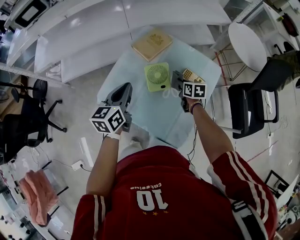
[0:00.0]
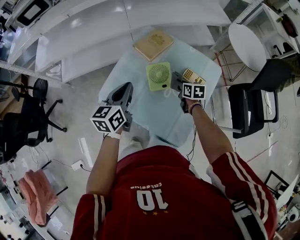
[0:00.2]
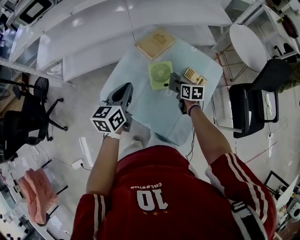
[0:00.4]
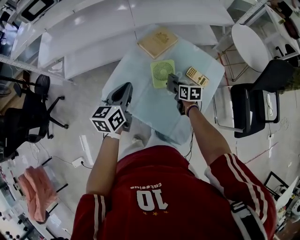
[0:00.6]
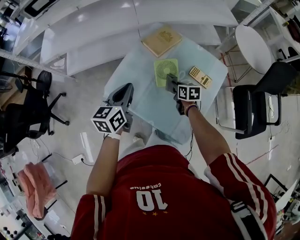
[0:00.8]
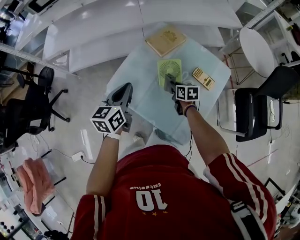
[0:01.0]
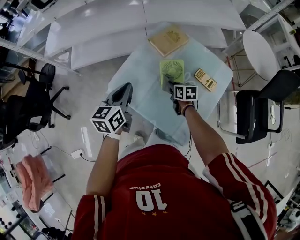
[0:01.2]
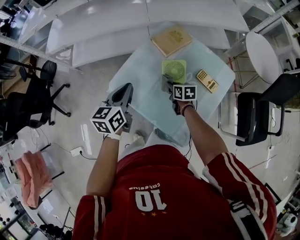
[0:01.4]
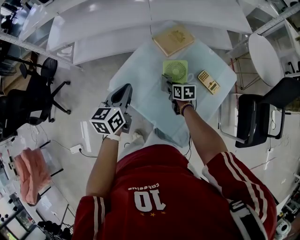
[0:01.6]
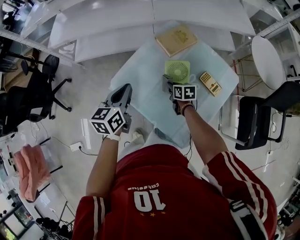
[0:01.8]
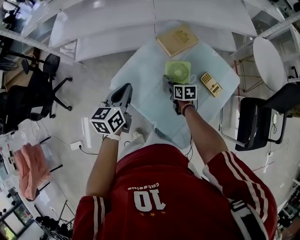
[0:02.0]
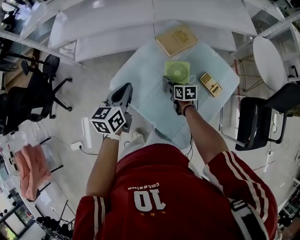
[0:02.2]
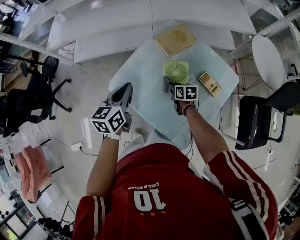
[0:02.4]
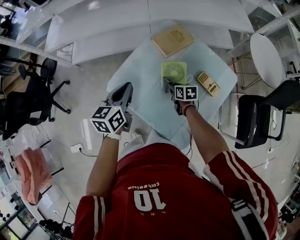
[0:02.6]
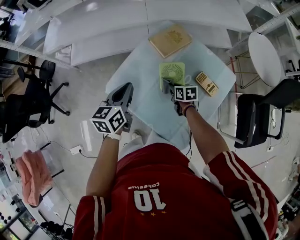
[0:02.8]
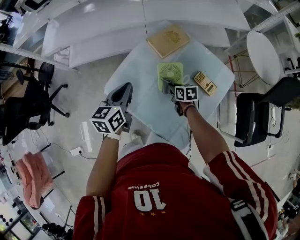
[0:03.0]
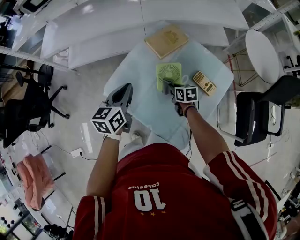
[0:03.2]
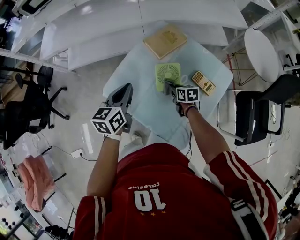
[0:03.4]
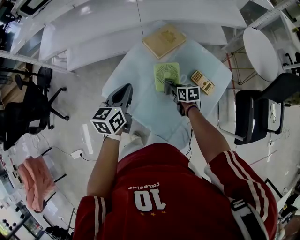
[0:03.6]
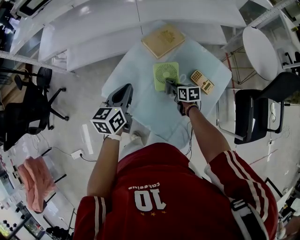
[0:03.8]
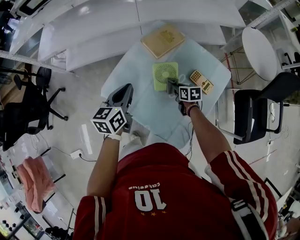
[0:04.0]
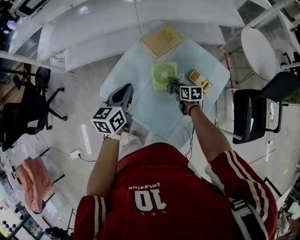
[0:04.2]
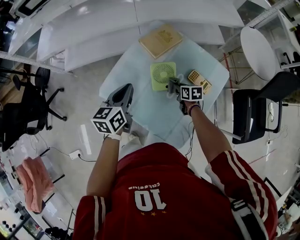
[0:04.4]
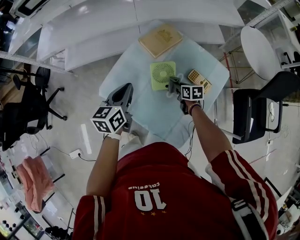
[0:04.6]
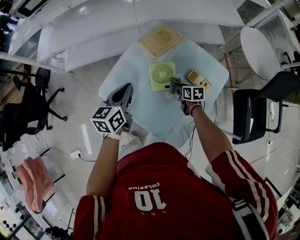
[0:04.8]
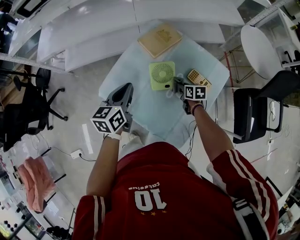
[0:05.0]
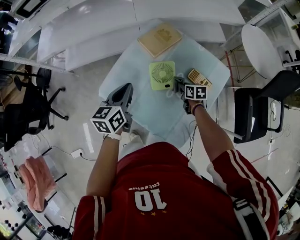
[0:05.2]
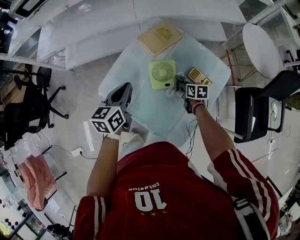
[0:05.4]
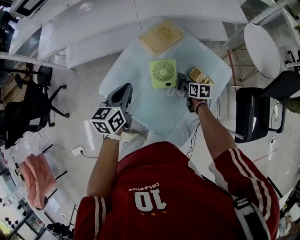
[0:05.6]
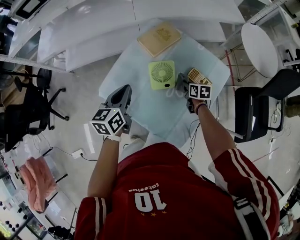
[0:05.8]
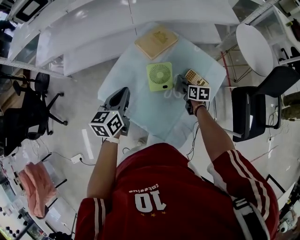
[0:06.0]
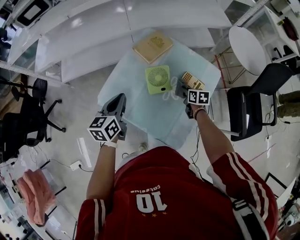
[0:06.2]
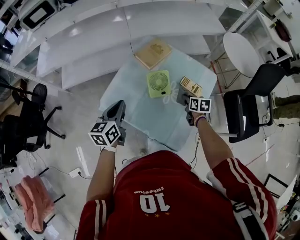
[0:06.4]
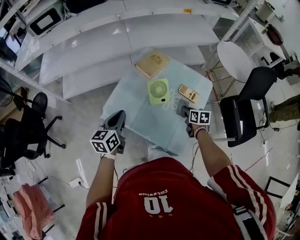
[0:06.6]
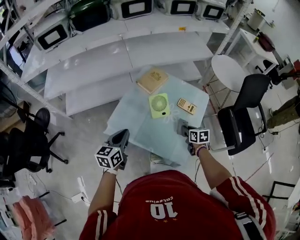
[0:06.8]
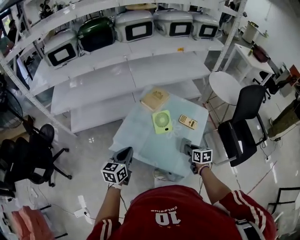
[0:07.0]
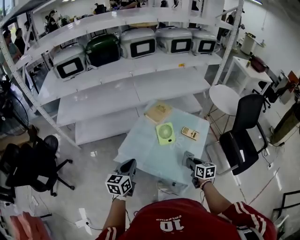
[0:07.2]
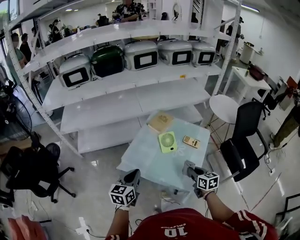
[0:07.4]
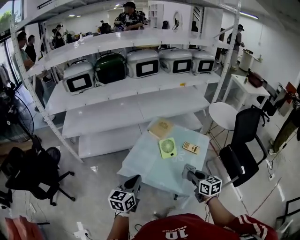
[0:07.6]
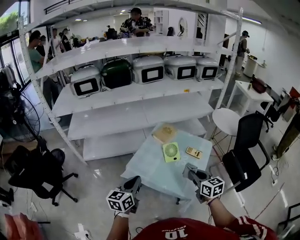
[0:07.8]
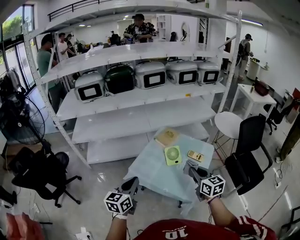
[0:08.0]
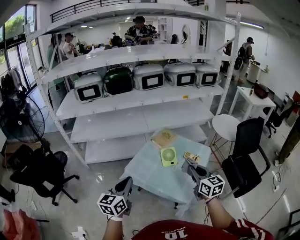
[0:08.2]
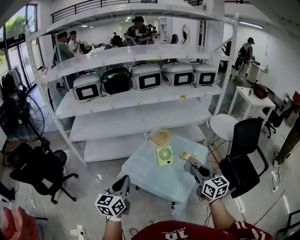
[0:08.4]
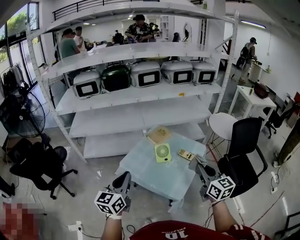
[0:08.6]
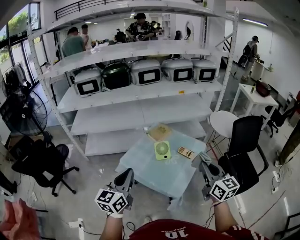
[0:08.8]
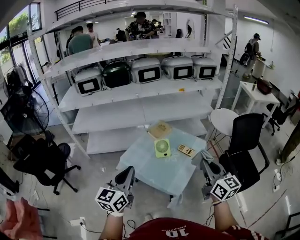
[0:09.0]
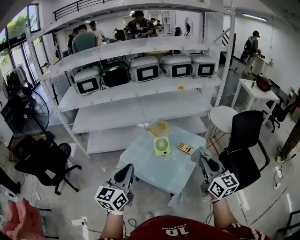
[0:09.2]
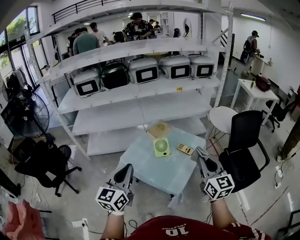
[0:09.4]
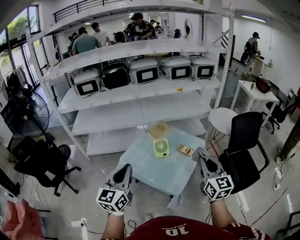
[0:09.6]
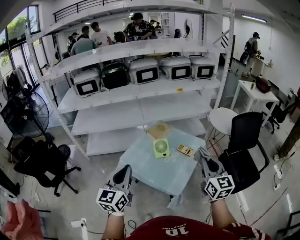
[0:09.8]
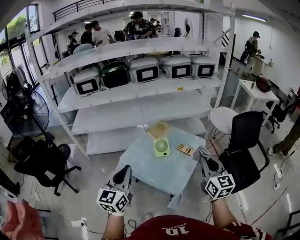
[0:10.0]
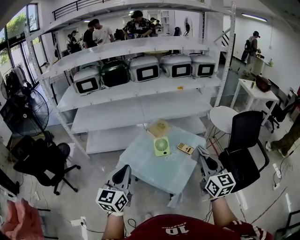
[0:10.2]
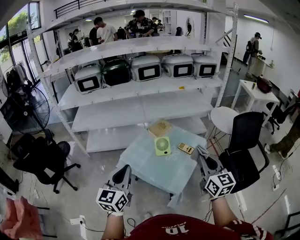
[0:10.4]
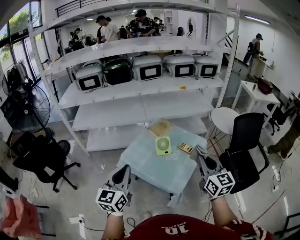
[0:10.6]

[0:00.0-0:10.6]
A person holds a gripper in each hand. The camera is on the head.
0:00.0 to 0:01.6: The right gripper heads to the left, covering some 15 cm, while the left gripper moves to the left, approximately 10 cm.
0:01.6 to 0:03.0: The grippers make only small movements.
0:03.0 to 0:04.6: The right gripper moves to the right, about 5 cm.
0:04.6 to 0:06.0: The right gripper is displaced to the right by some 5 cm.
0:06.0 to 0:07.6: The right gripper shifts about 40 cm upward and backward, and turns by about 30 degrees; the left gripper moves backward and upward, approximately 30 cm.
0:07.6 to 0:09.0: The left gripper goes some 20 cm upward, to the right and backward. Meanwhile the right gripper goes roughly 25 cm upward and to the right, and turns by about 30 degrees.
0:09.0 to 0:10.6: The grippers make only small movements.

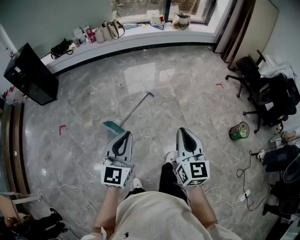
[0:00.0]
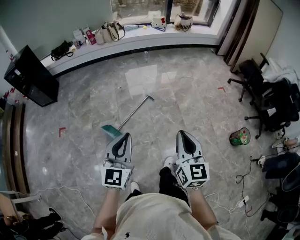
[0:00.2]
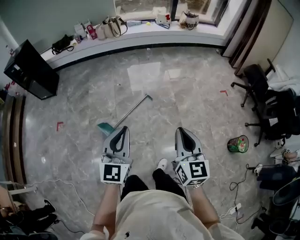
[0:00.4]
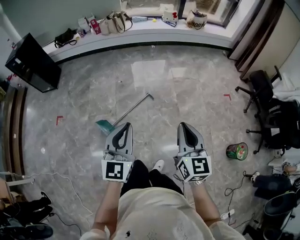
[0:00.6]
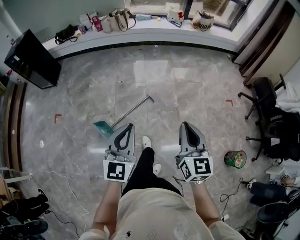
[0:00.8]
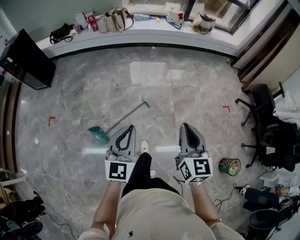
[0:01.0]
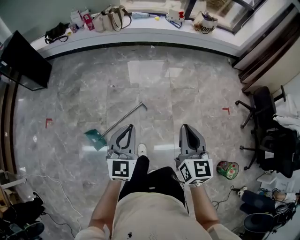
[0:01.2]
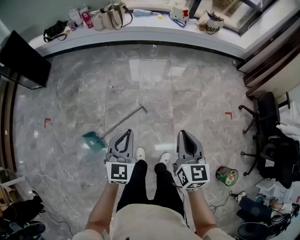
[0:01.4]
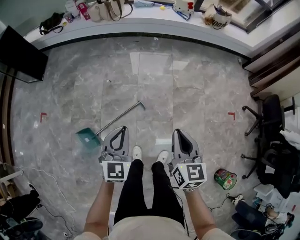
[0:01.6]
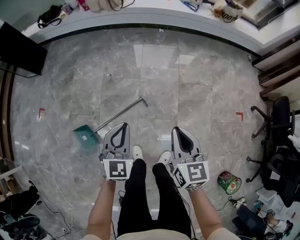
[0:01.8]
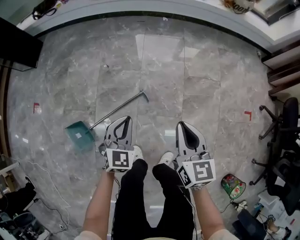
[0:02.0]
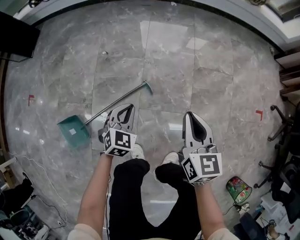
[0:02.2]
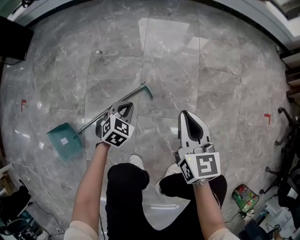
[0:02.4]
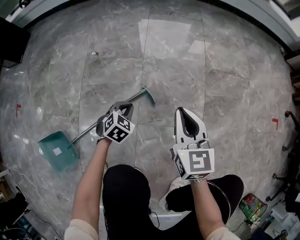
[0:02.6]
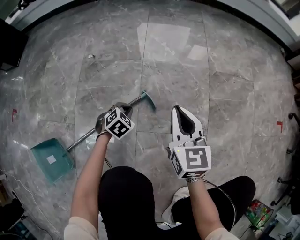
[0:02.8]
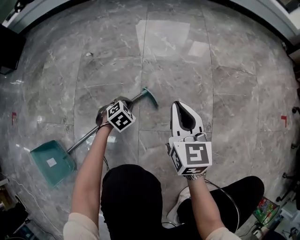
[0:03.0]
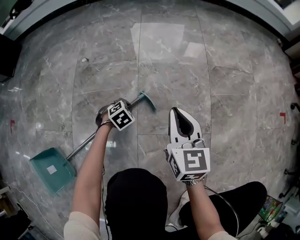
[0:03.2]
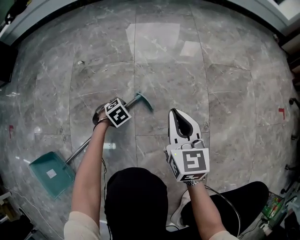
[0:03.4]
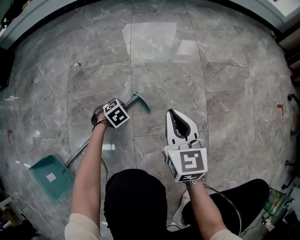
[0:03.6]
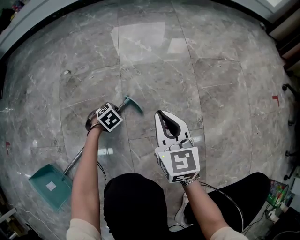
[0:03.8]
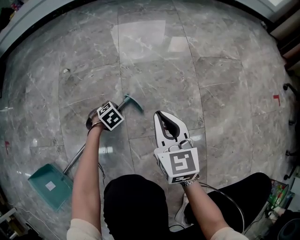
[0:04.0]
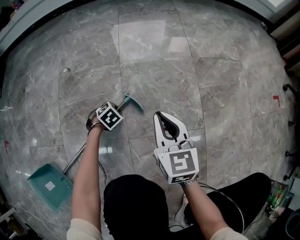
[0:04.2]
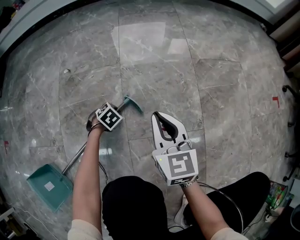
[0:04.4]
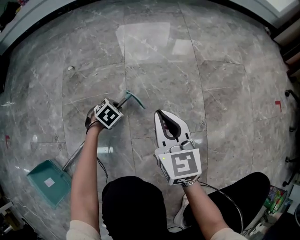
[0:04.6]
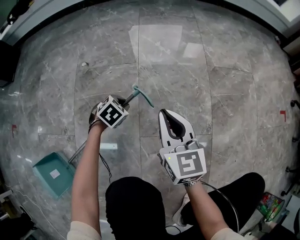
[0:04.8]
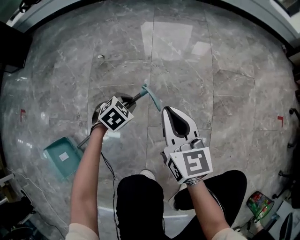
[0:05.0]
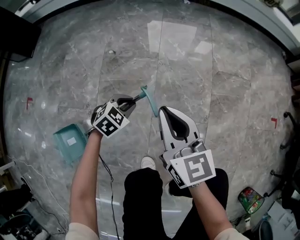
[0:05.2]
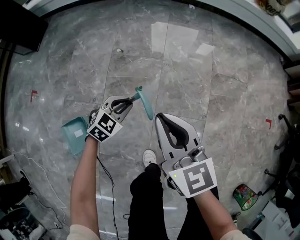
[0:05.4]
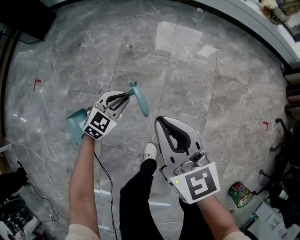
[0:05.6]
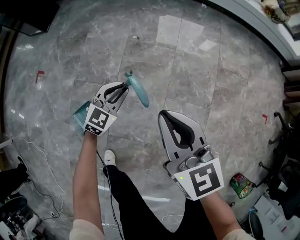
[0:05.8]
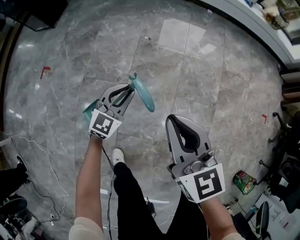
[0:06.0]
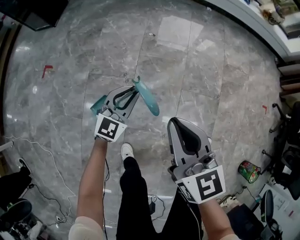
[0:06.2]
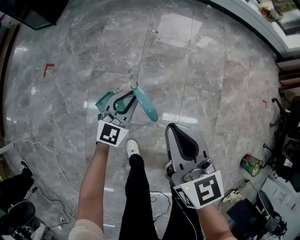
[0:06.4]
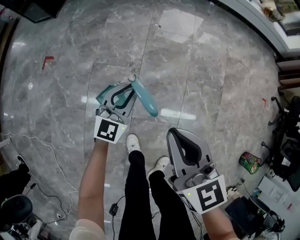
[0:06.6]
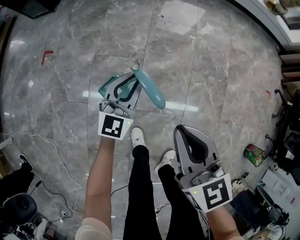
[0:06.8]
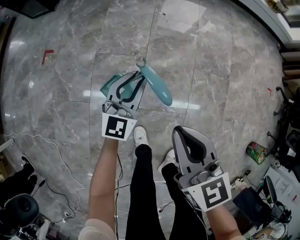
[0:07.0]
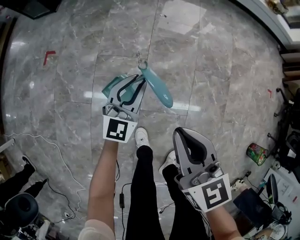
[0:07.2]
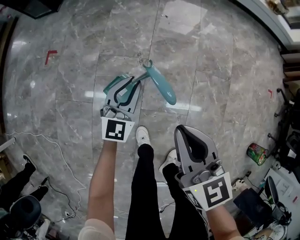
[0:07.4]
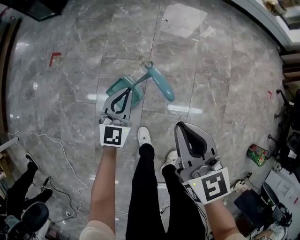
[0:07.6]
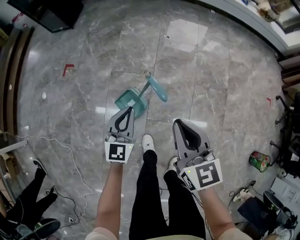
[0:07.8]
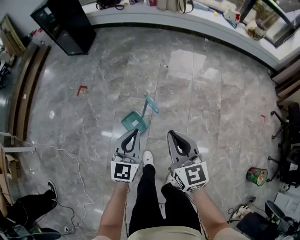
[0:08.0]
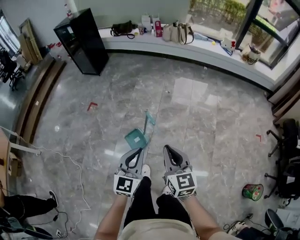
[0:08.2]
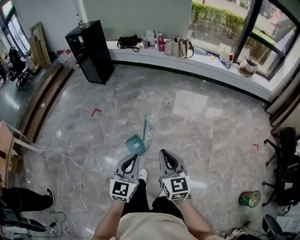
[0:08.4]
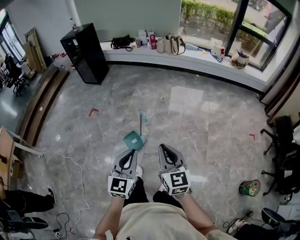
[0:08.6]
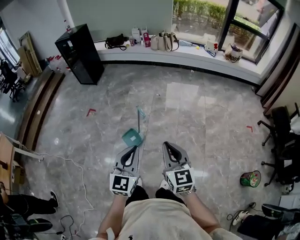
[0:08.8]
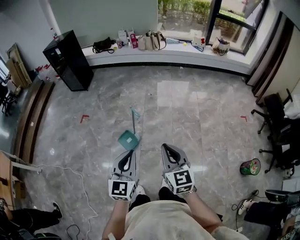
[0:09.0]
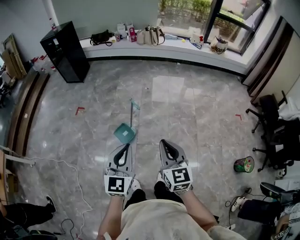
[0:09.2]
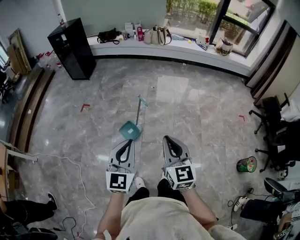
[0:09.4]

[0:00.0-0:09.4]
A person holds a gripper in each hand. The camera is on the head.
0:00.0 to 0:01.6: The pair of grippers is taken forward, roughly 60 cm. The left gripper swivels some 20 degrees, while the right gripper turns by about 20 degrees.
0:01.6 to 0:03.2: The two grippers go about 80 cm downward. The left gripper tilts its fingers approximately 50 degrees downward.
0:03.2 to 0:04.8: The left gripper travels upward by approximately 5 cm.
0:04.8 to 0:06.2: The pair of grippers is taken to the left and backward, roughly 40 cm. The grippers both shift upward by about 50 cm. The left gripper angles its fingers upward, by about 50 degrees.
0:06.2 to 0:07.8: The right gripper shifts roughly 15 cm backward, to the left and upward, while the left gripper moves backward, to the left and upward, approximately 25 cm, and rotates about 20 degrees.
0:07.8 to 0:09.4: Both grippers move upward and backward, roughly 50 cm.

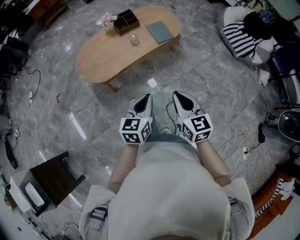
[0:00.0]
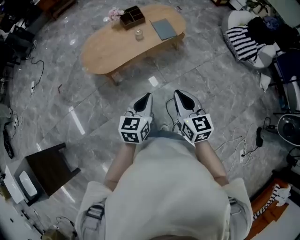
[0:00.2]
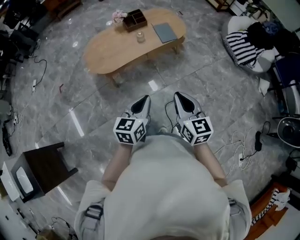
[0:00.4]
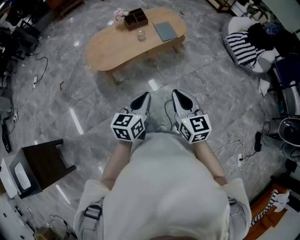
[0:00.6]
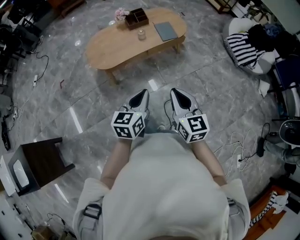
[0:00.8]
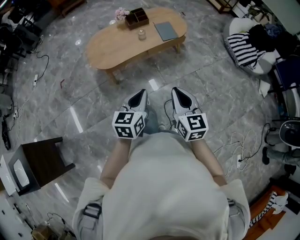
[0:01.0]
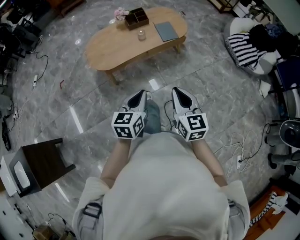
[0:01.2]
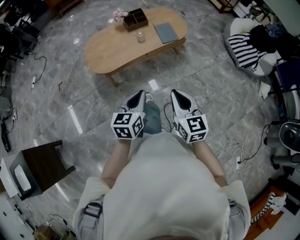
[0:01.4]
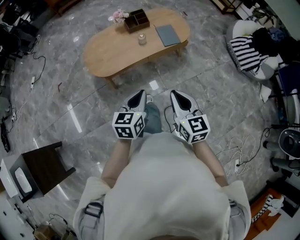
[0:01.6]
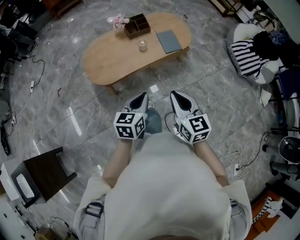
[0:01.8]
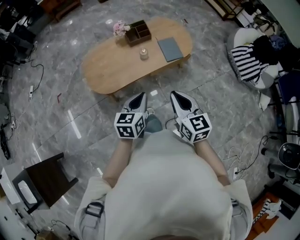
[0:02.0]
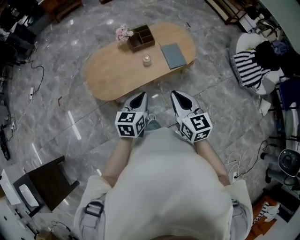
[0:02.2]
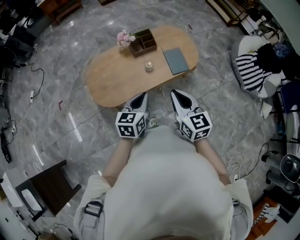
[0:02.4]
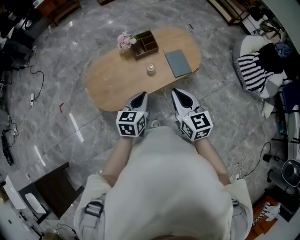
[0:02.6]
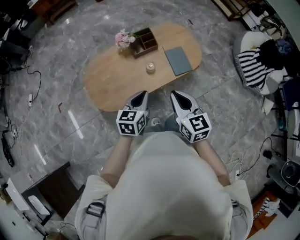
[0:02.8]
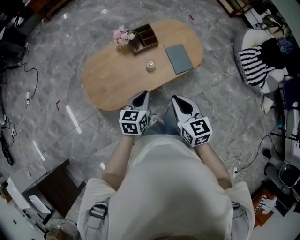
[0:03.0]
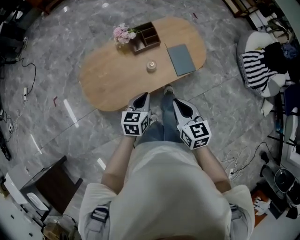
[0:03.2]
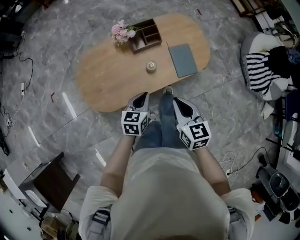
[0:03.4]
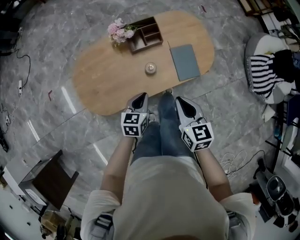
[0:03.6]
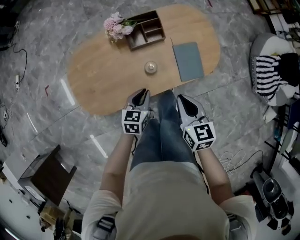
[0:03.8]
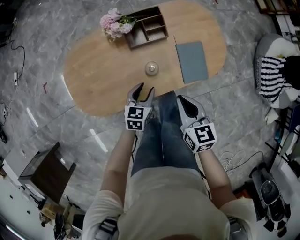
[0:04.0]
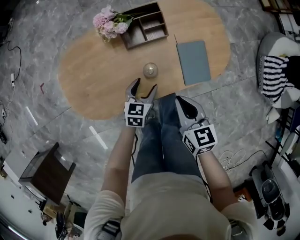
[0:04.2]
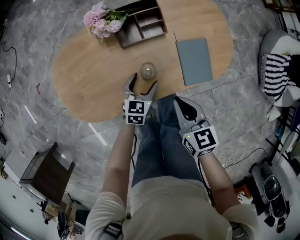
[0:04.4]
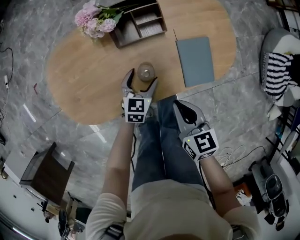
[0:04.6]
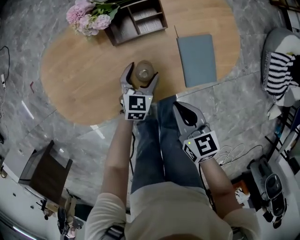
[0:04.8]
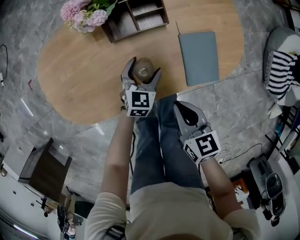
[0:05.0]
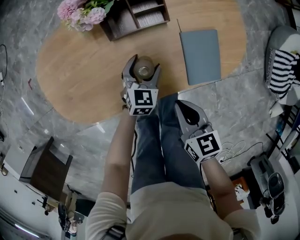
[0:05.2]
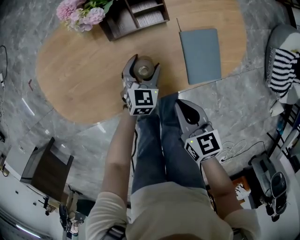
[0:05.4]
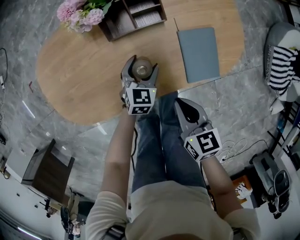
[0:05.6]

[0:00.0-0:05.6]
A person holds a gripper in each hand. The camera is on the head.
0:01.4 to 0:02.8: The grippers both shift forward by about 35 cm.
0:02.8 to 0:04.2: The grippers both shift downward and forward by roughly 30 cm. The right gripper swivels some 20 degrees; the left gripper opens its fingers.
0:04.2 to 0:05.6: The right gripper is displaced downward by approximately 10 cm; the left gripper is displaced downward and forward by roughly 10 cm.
